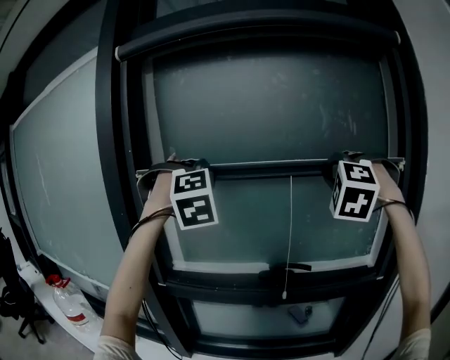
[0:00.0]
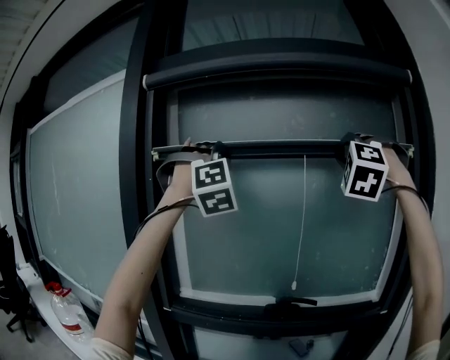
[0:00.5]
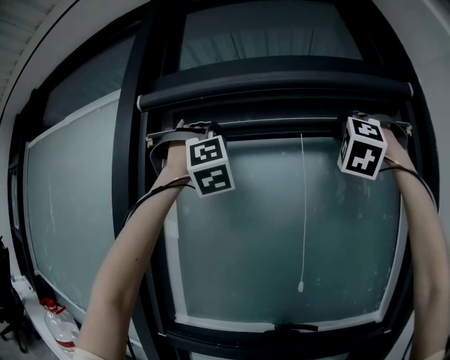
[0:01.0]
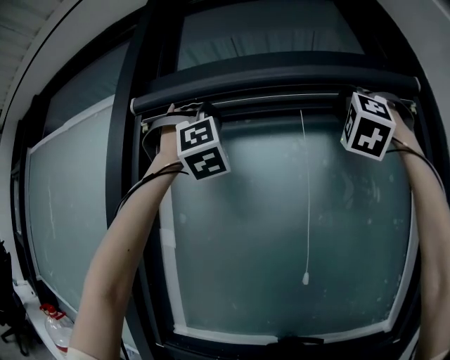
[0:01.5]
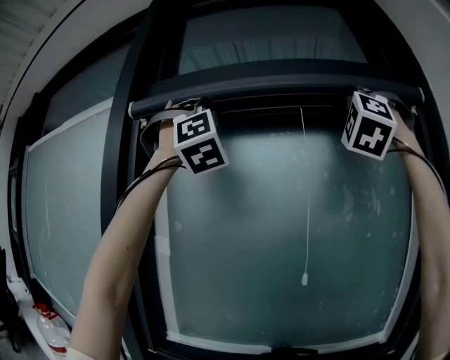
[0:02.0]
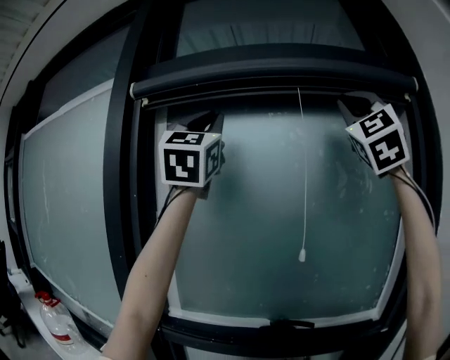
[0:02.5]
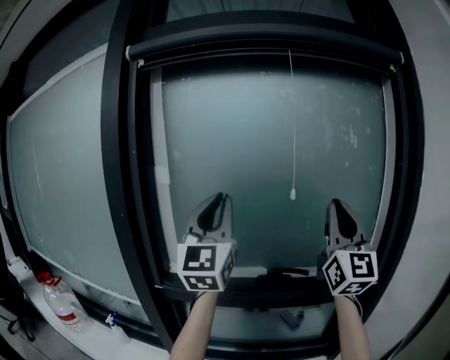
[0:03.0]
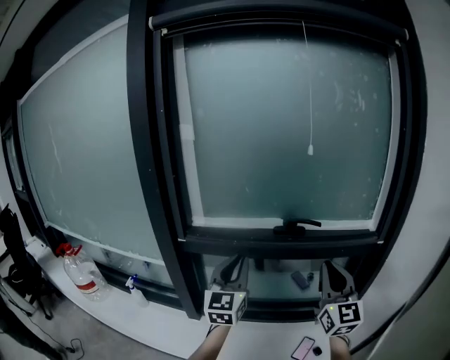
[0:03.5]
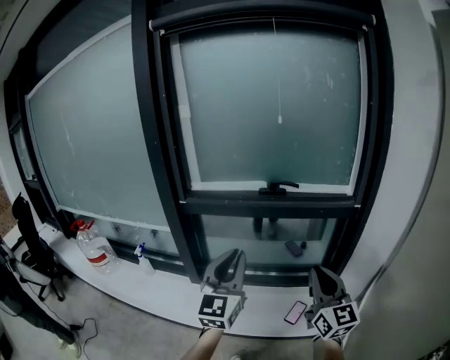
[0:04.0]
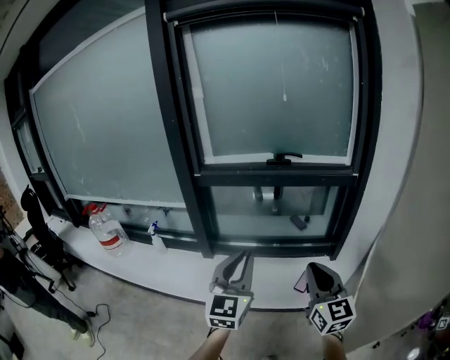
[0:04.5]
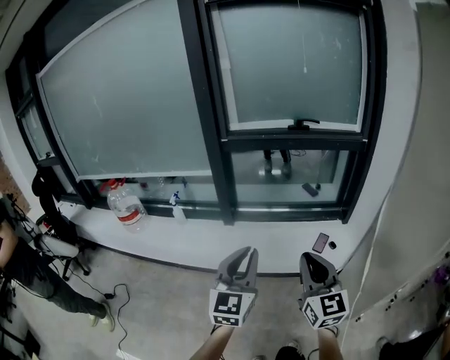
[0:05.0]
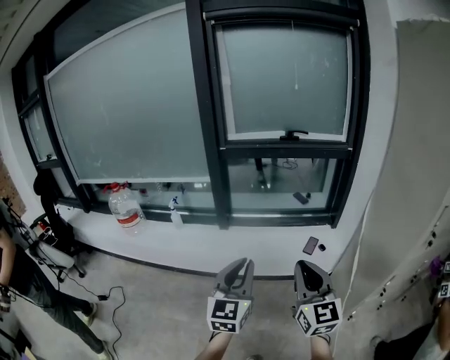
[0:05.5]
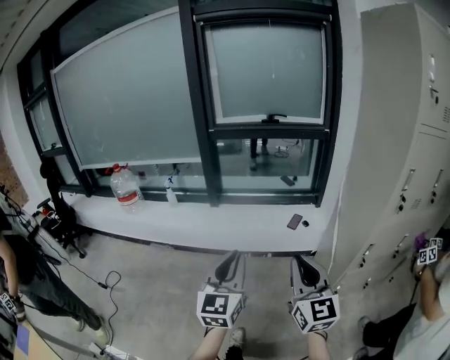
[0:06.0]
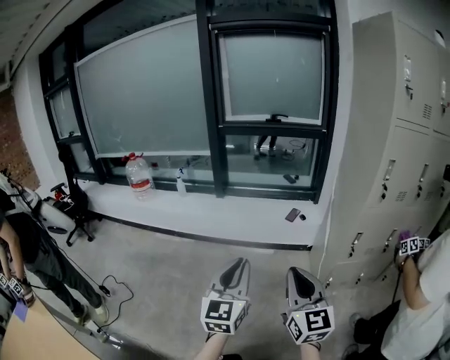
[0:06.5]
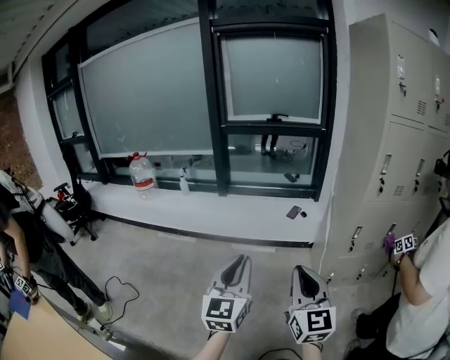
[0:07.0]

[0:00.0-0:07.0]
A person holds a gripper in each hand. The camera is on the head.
0:00.0 to 0:02.0: Both grippers move upward, roughly 35 cm. The right gripper tilts its fingers about 40 degrees upward. The left gripper points its fingers some 40 degrees further upward.
0:02.0 to 0:03.5: Both grippers travel together downward, some 60 cm. The right gripper rotates around the line of its fingers by some 90 degrees, clockwise from behind, while the left gripper twists approximately 90 degrees counterclockwise, seen from behind.
0:03.5 to 0:05.0: The two grippers travel together, backward, roughly 50 cm.
0:05.0 to 0:07.0: The two grippers travel together, backward, approximately 50 cm.

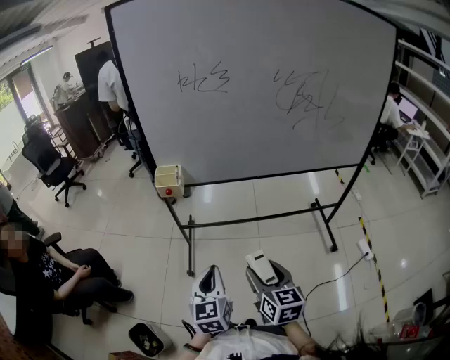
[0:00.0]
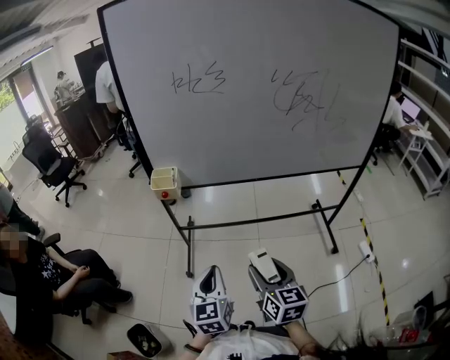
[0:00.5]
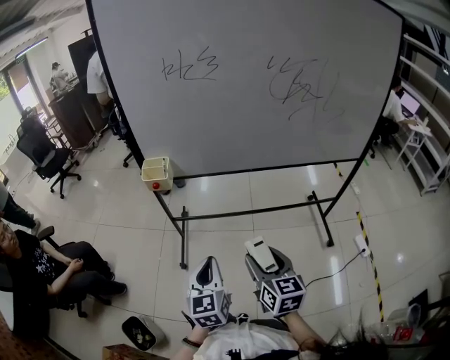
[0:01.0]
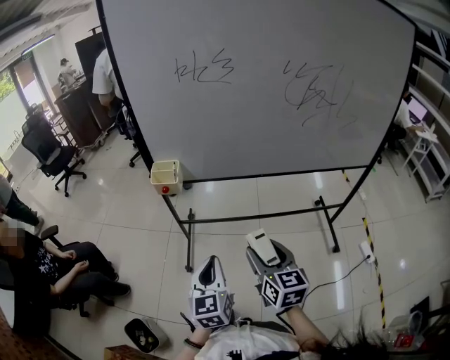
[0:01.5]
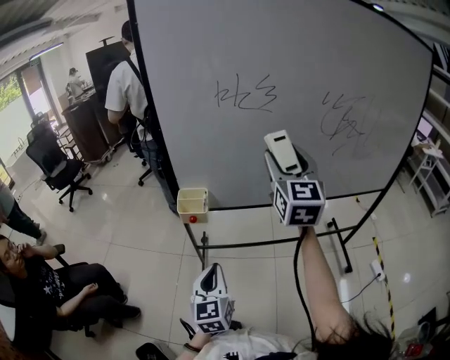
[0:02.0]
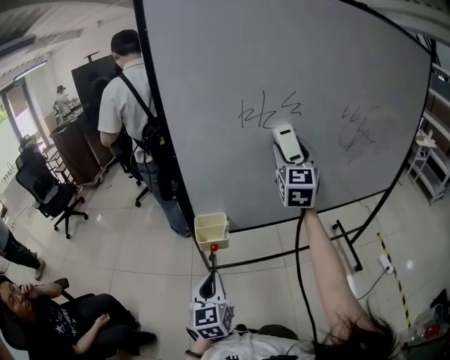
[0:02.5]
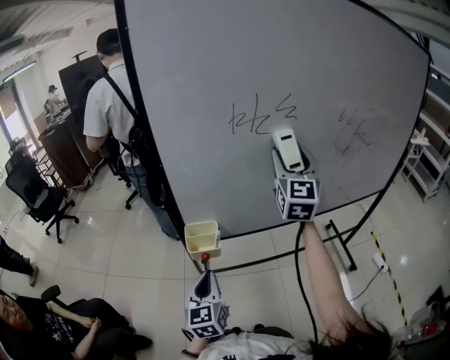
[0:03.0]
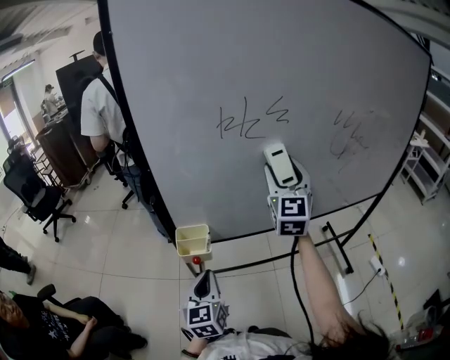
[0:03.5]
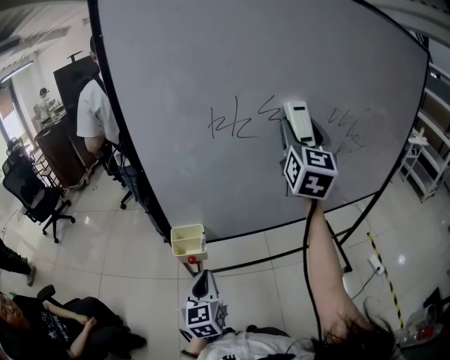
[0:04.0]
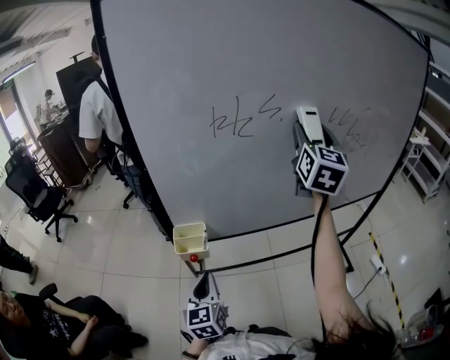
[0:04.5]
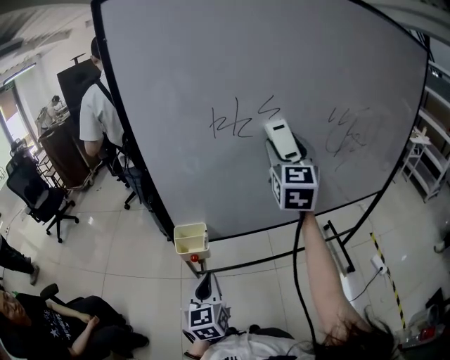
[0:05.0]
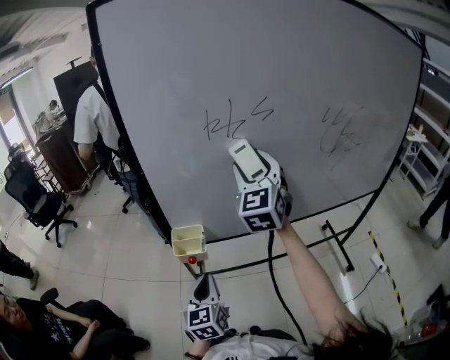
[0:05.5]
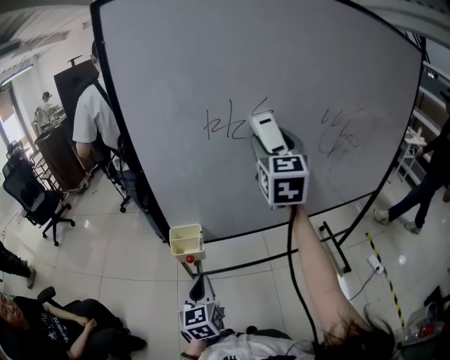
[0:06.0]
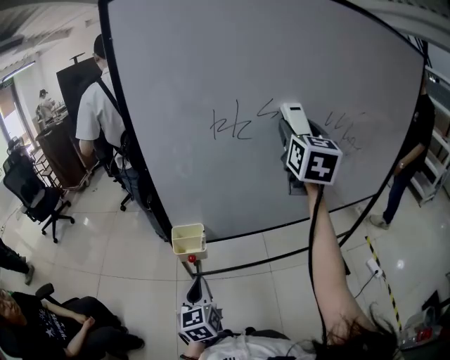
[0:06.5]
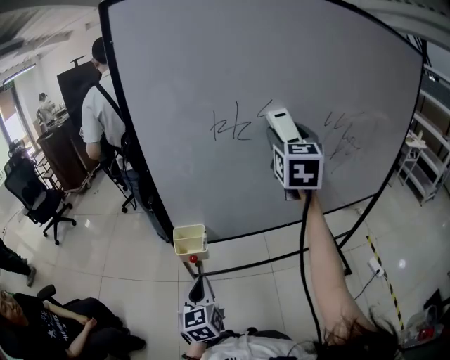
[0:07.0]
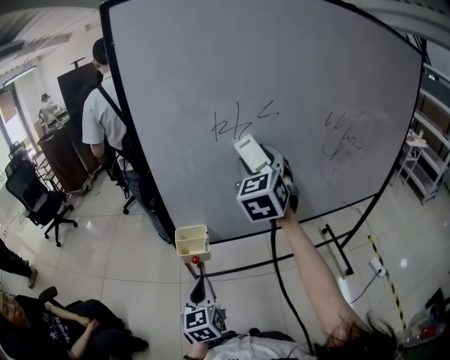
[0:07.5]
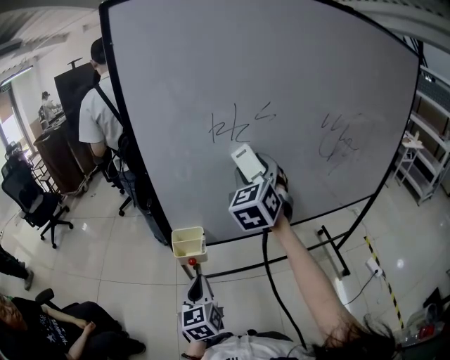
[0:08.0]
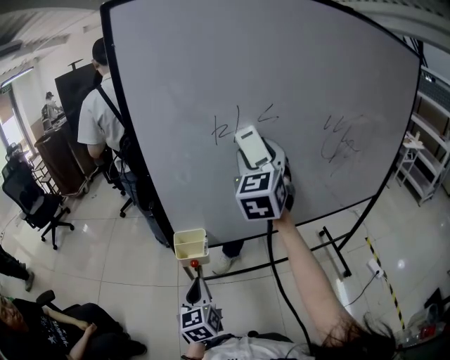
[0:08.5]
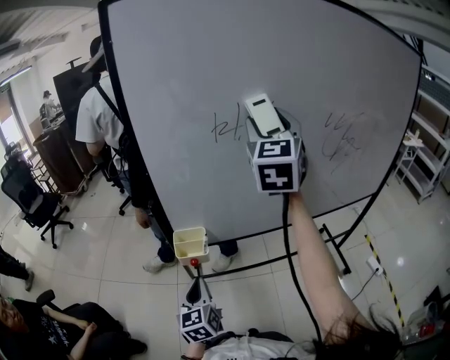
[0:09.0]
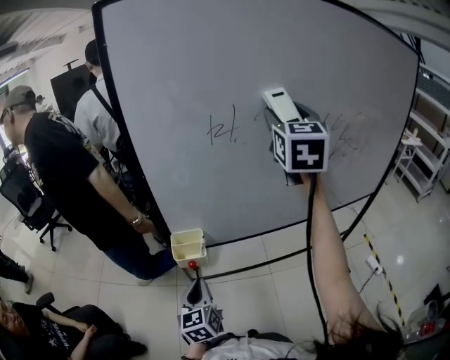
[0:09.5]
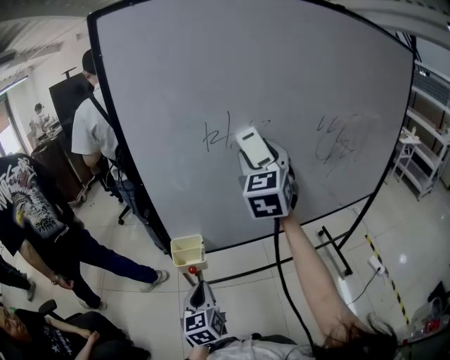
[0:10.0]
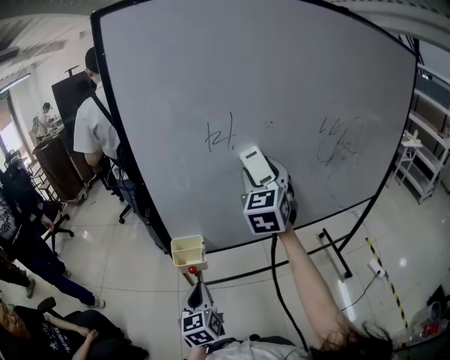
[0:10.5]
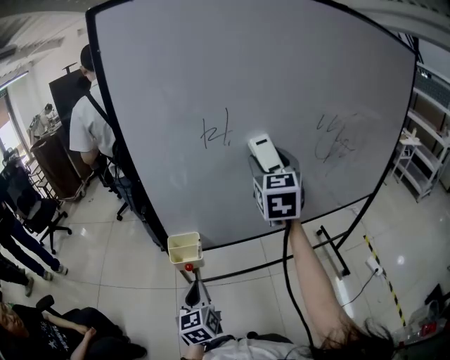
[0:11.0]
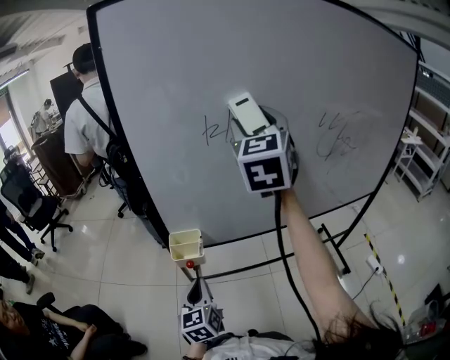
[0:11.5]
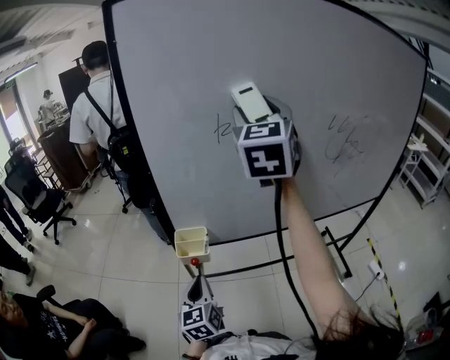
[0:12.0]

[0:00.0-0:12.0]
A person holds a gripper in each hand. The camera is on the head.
0:00.0 to 0:02.0: The left gripper heads forward and to the left, covering some 15 cm. The right gripper goes about 40 cm forward and upward, and changes its angle by about 40 degrees.
0:02.0 to 0:04.0: The left gripper heads forward and to the left, covering some 15 cm, while the right gripper goes about 15 cm forward and upward.
0:04.0 to 0:06.0: The right gripper is displaced to the left by roughly 5 cm.
0:06.0 to 0:08.0: The right gripper is displaced downward and to the left by approximately 10 cm, and turns by about 20 degrees.
0:08.0 to 0:10.0: The right gripper is displaced upward by approximately 5 cm.
0:10.0 to 0:12.0: The right gripper is displaced upward by about 10 cm.

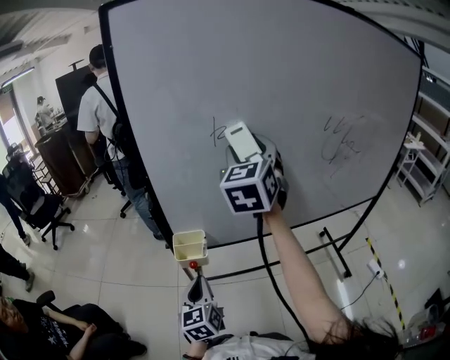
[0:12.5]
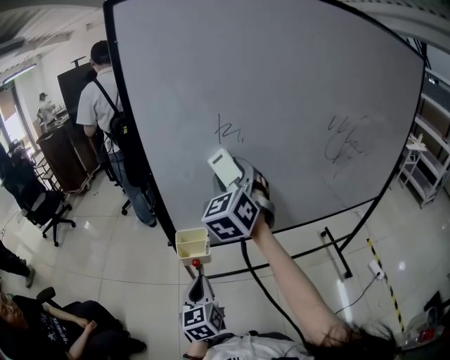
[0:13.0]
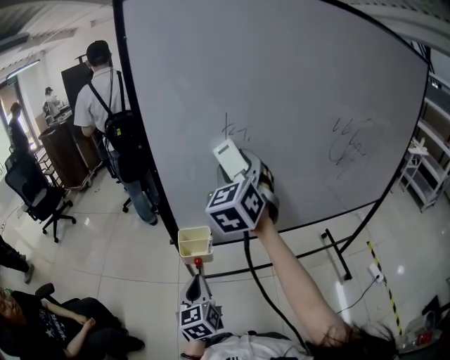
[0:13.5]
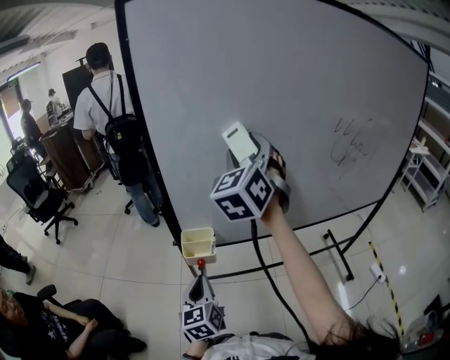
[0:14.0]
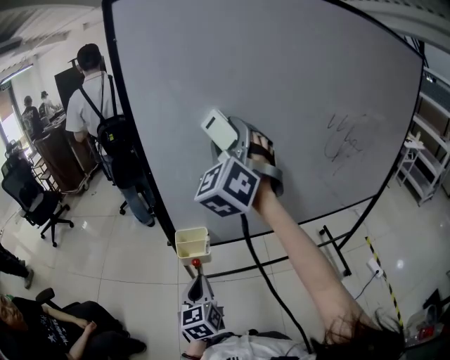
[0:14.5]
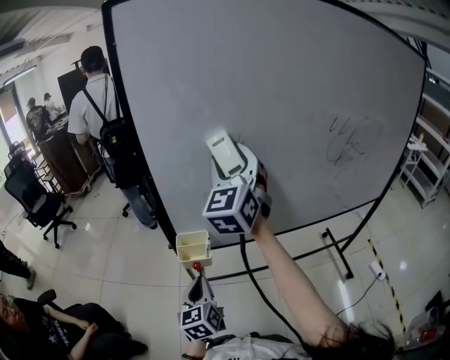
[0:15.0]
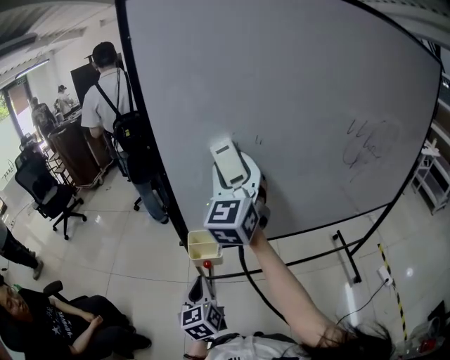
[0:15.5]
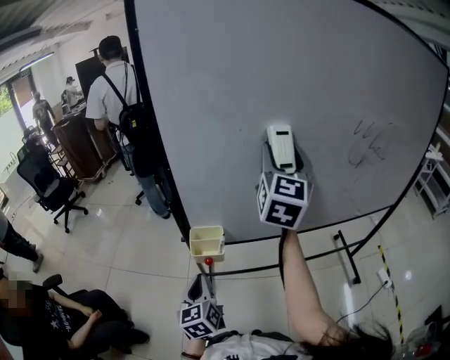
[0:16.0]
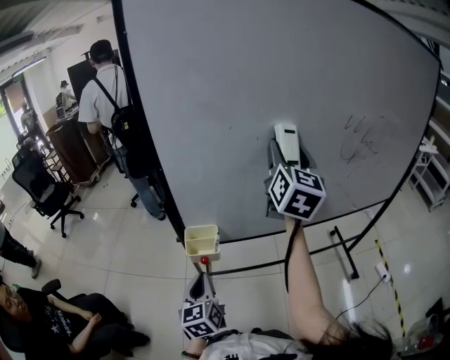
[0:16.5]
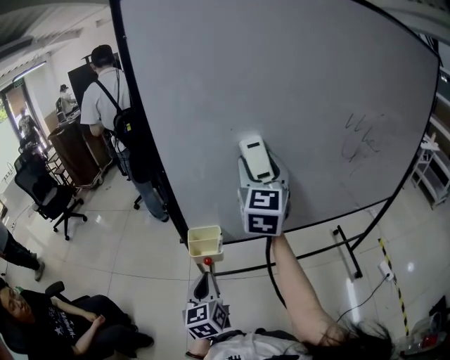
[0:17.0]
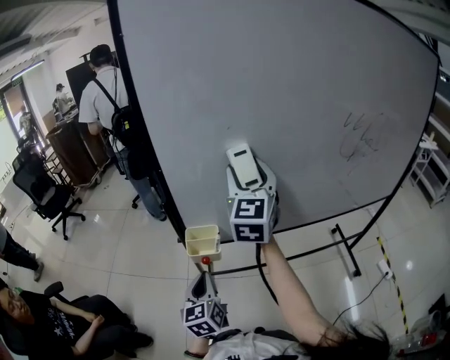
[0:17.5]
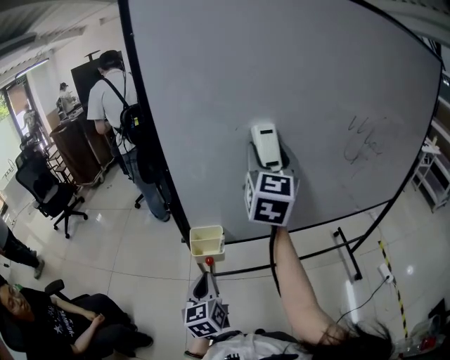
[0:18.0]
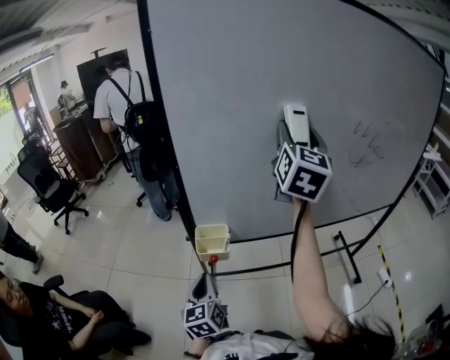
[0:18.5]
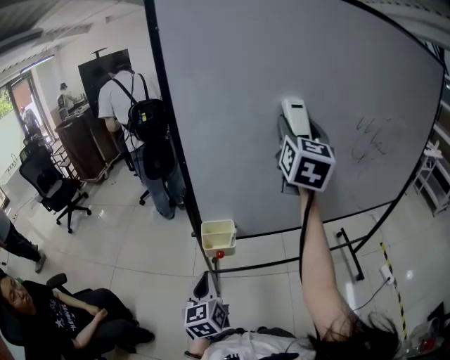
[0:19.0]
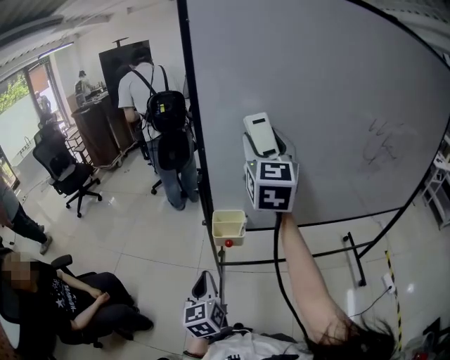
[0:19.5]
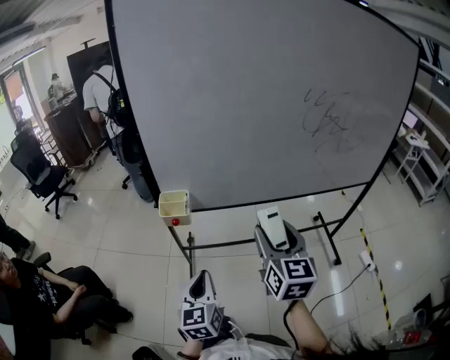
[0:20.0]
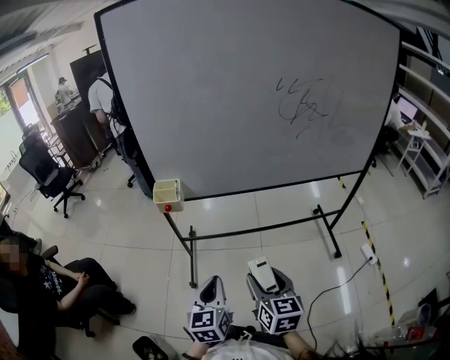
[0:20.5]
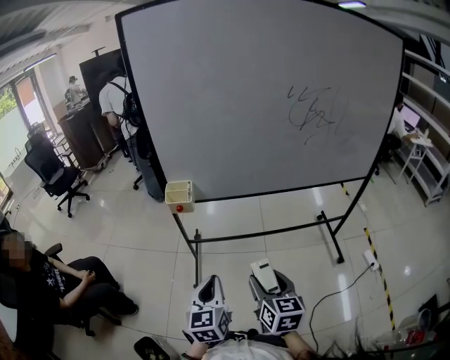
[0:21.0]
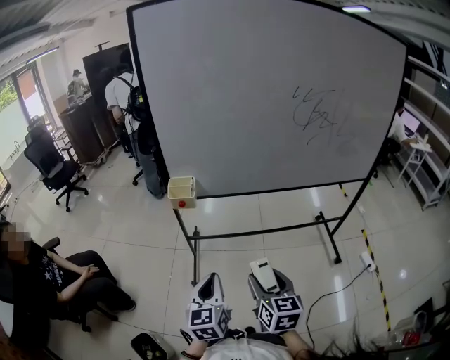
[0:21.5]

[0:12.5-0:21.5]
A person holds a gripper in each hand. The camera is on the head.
0:12.5 to 0:14.5: The right gripper travels to the left by approximately 5 cm, travels downward and back again, approximately 5 cm each way, and rotates roughly 30 degrees.
0:14.5 to 0:17.0: The right gripper goes about 10 cm downward, moves some 15 cm to the right and comes back, and rotates around the line of its fingers by about 40 degrees, clockwise from behind.
0:17.0 to 0:19.5: The left gripper goes about 10 cm to the left and backward. The right gripper shifts roughly 10 cm to the left.
0:19.5 to 0:21.5: The left gripper moves backward and to the right, some 30 cm, while the right gripper goes approximately 60 cm backward, downward and to the right, and points its fingers some 30 degrees further downward.
